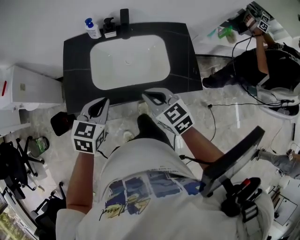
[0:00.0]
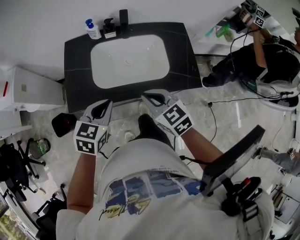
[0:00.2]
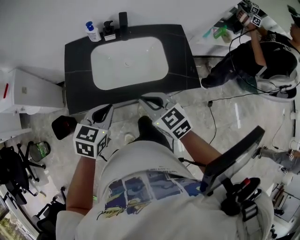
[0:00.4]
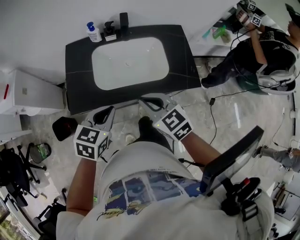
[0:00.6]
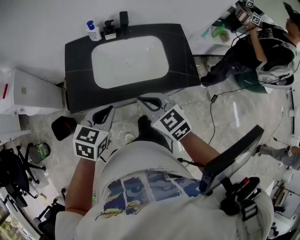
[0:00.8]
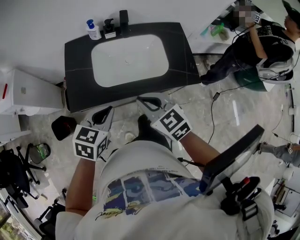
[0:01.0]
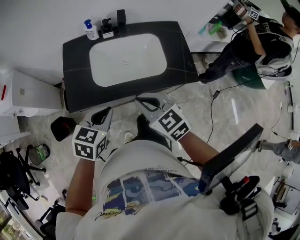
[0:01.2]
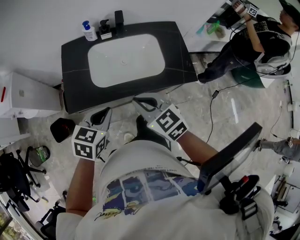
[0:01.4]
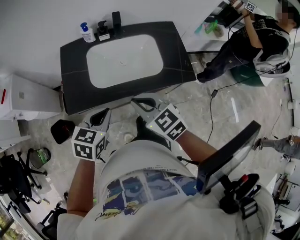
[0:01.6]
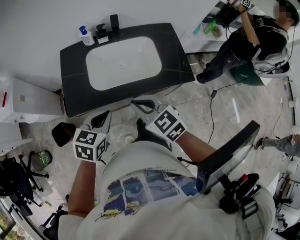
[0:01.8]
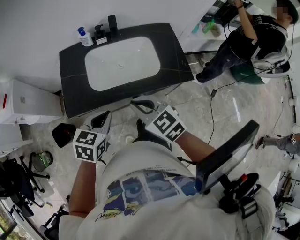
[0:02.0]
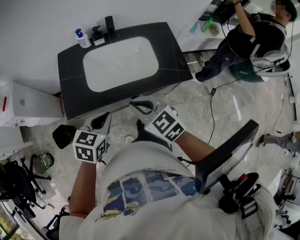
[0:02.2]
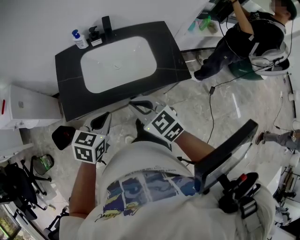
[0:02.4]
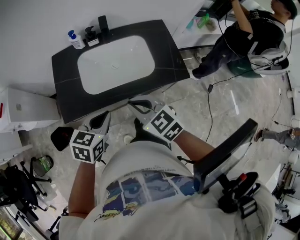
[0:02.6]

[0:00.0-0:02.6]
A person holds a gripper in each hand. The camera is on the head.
0:00.0 to 0:01.2: The left gripper heads backward, covering about 5 cm; the right gripper goes about 10 cm backward and to the left.
0:01.2 to 0:02.6: There are only small adjustments of the grippers.

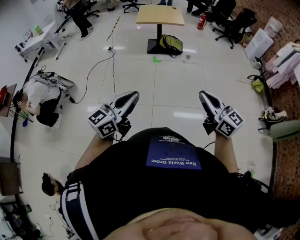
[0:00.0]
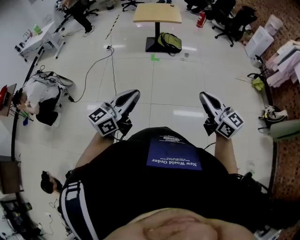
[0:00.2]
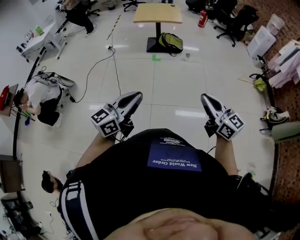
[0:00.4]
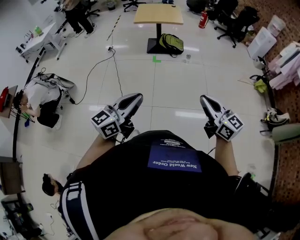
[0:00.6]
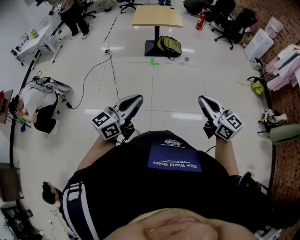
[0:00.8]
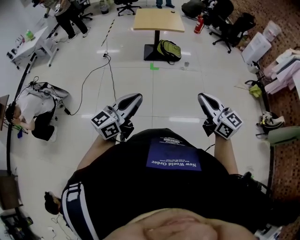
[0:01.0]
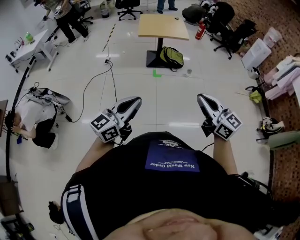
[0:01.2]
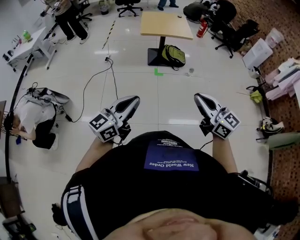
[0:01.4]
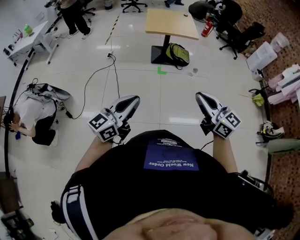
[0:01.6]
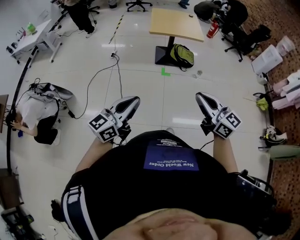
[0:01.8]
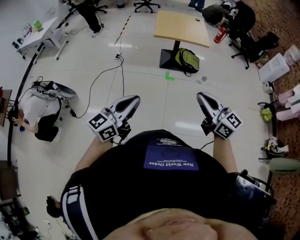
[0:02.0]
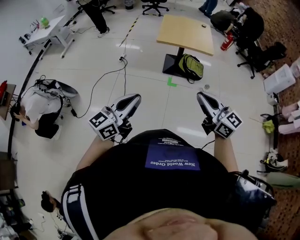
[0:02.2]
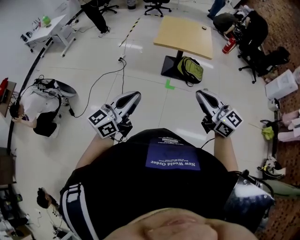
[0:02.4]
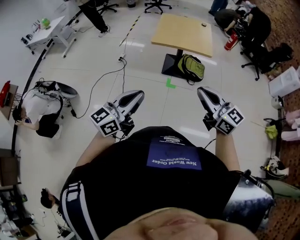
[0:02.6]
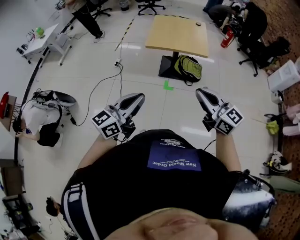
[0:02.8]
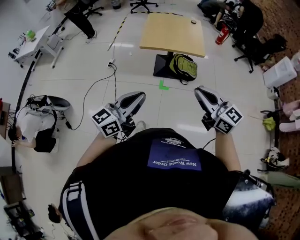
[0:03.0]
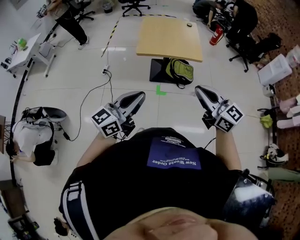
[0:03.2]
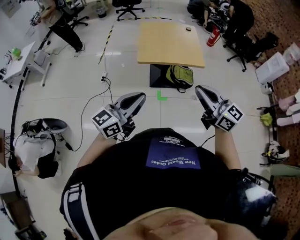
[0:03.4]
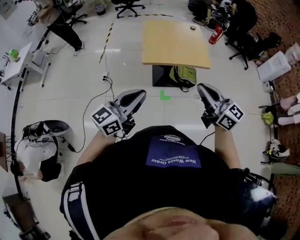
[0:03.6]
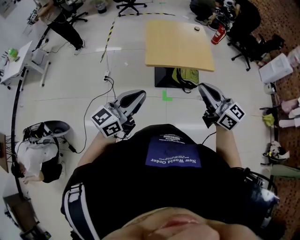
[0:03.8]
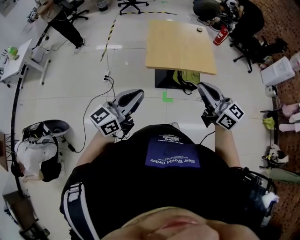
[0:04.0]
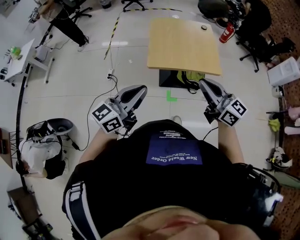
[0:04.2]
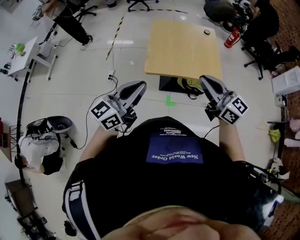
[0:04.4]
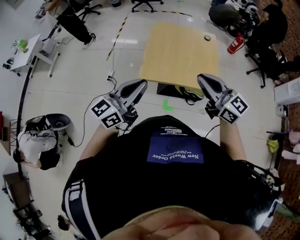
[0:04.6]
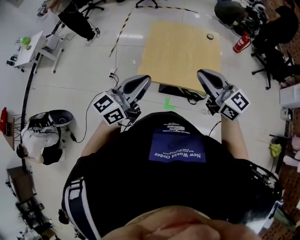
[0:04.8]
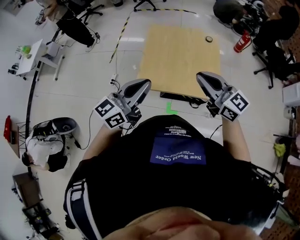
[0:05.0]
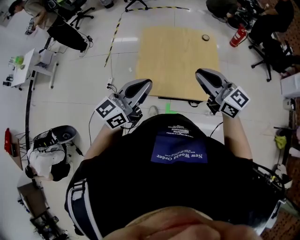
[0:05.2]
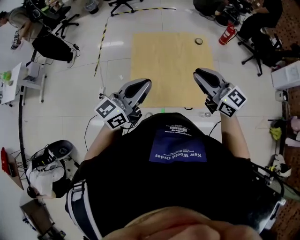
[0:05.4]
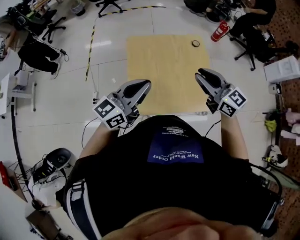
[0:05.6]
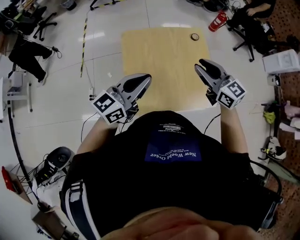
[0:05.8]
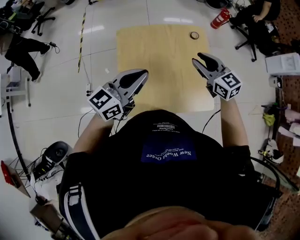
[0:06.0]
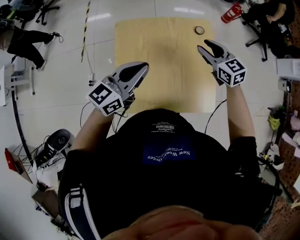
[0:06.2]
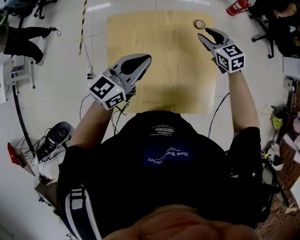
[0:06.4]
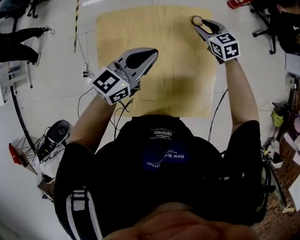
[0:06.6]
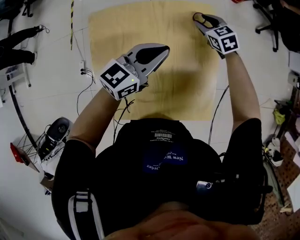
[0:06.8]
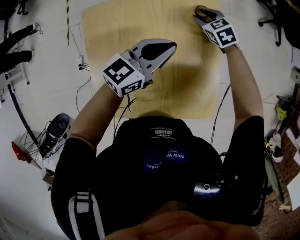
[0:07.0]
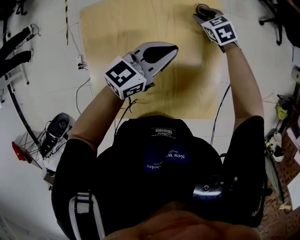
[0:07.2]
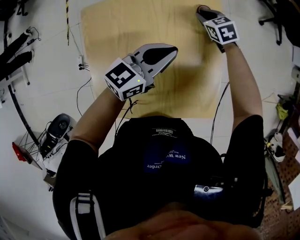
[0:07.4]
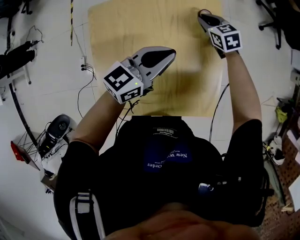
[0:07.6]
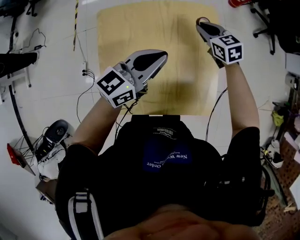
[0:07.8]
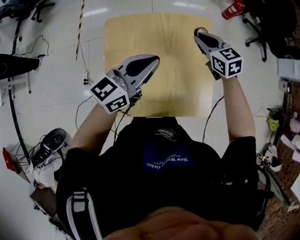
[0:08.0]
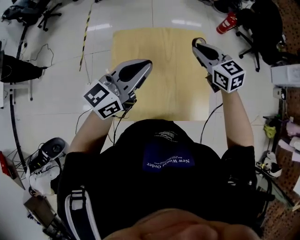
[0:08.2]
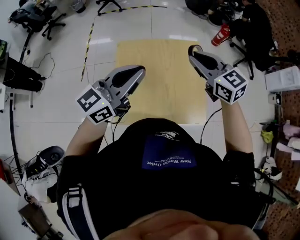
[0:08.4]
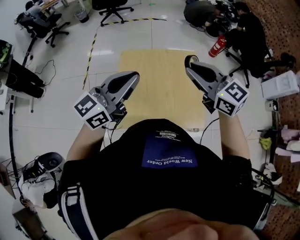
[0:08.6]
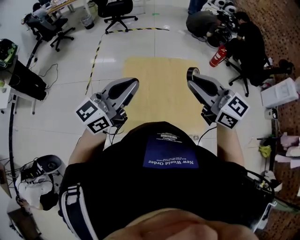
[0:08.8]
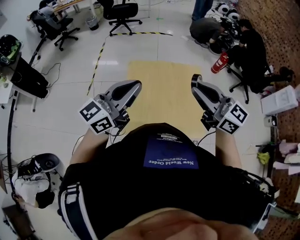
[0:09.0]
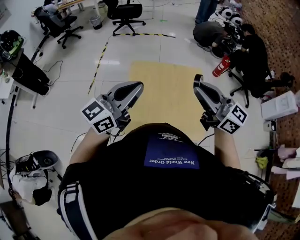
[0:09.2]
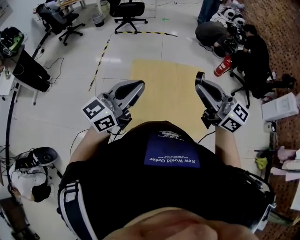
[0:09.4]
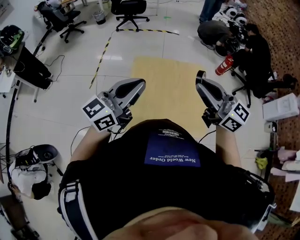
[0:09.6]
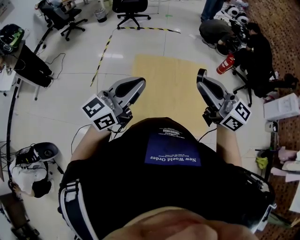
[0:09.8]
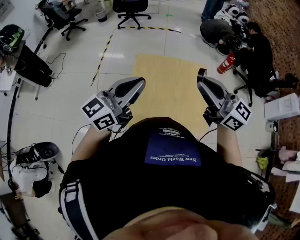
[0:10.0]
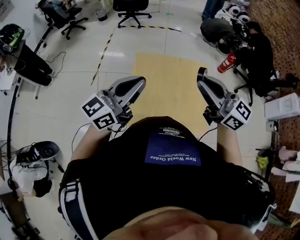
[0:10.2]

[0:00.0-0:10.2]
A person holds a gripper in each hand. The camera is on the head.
0:00.0 to 0:01.4: Both grippers move forward and to the left, some 30 cm.
0:01.4 to 0:03.0: The pair of grippers is taken forward and to the right, approximately 40 cm.
0:03.0 to 0:04.4: Both grippers move forward, some 35 cm.
0:04.4 to 0:05.8: The two grippers travel together, forward, approximately 40 cm. The right gripper rotates some 20 degrees, and opens up.
0:05.8 to 0:07.2: The right gripper shifts roughly 50 cm downward and forward, and tips its fingers downward by some 40 degrees. The left gripper travels forward, to the right and downward by some 40 cm.
0:07.2 to 0:08.8: The right gripper travels upward and backward by about 60 cm, angles its fingers upward, by roughly 50 degrees, and closes its fingers. Meanwhile the left gripper shifts about 50 cm upward, backward and to the left, and turns by roughly 30 degrees.
0:08.8 to 0:10.2: The grippers move only a little.

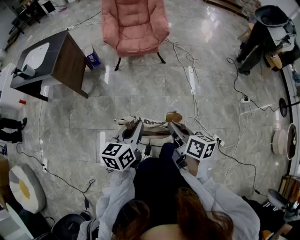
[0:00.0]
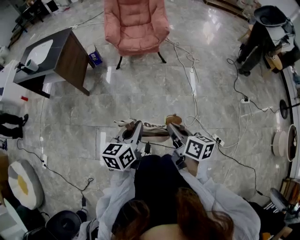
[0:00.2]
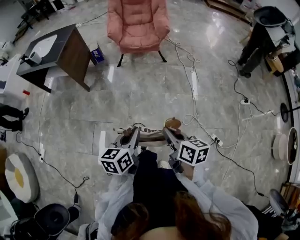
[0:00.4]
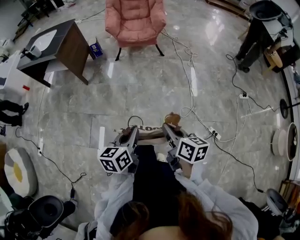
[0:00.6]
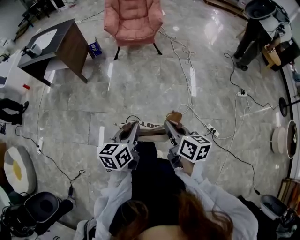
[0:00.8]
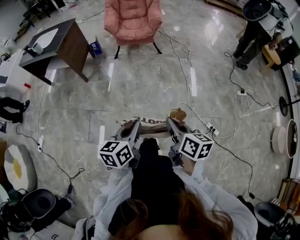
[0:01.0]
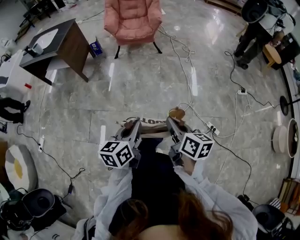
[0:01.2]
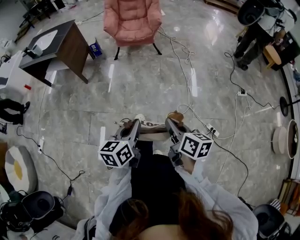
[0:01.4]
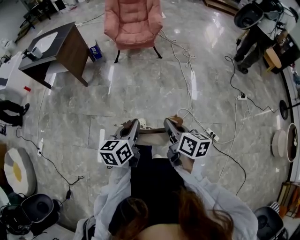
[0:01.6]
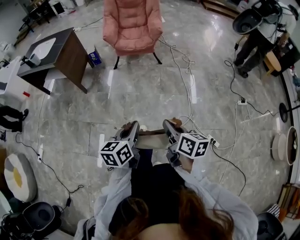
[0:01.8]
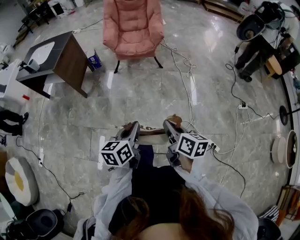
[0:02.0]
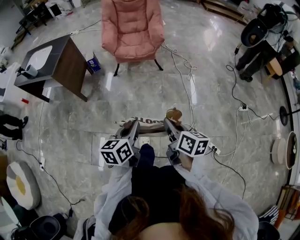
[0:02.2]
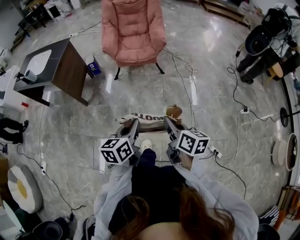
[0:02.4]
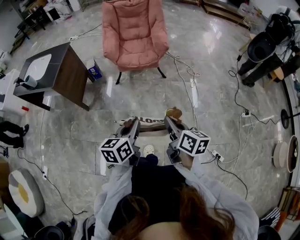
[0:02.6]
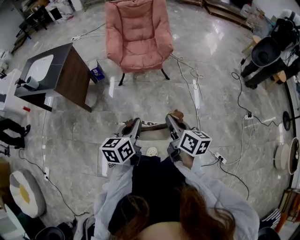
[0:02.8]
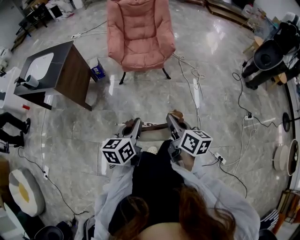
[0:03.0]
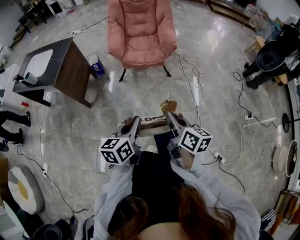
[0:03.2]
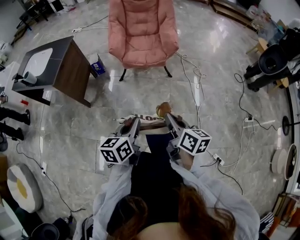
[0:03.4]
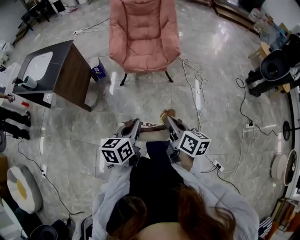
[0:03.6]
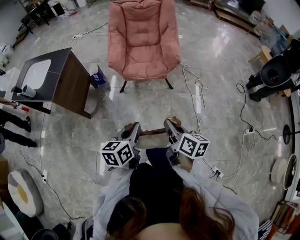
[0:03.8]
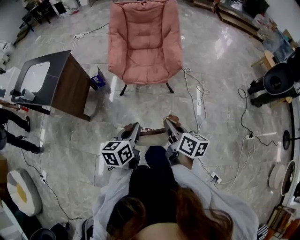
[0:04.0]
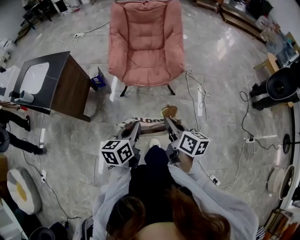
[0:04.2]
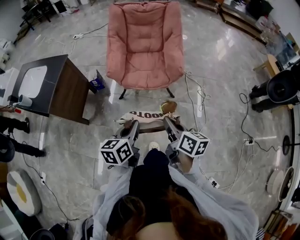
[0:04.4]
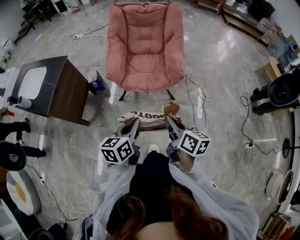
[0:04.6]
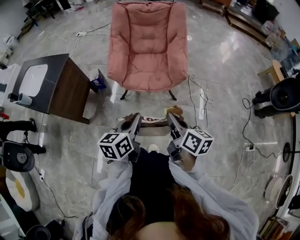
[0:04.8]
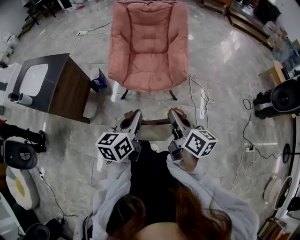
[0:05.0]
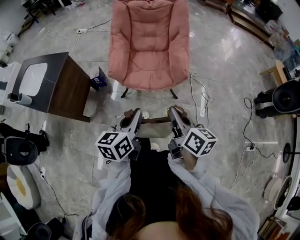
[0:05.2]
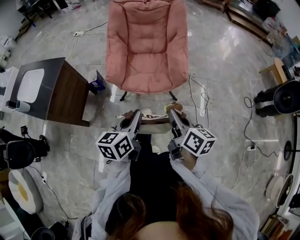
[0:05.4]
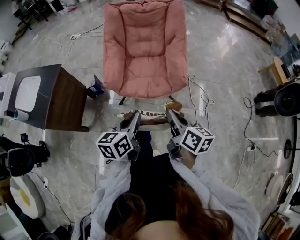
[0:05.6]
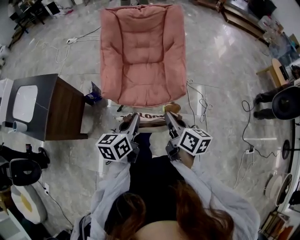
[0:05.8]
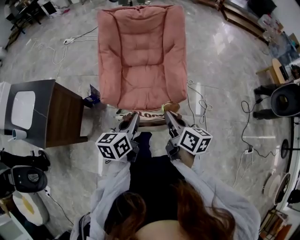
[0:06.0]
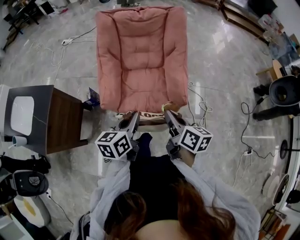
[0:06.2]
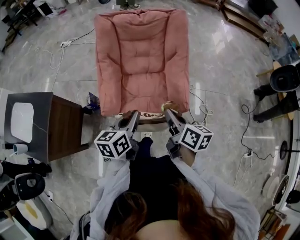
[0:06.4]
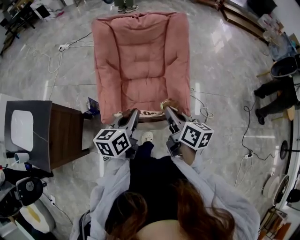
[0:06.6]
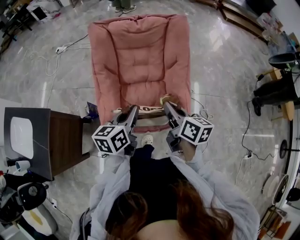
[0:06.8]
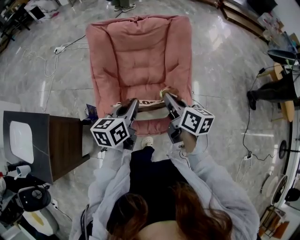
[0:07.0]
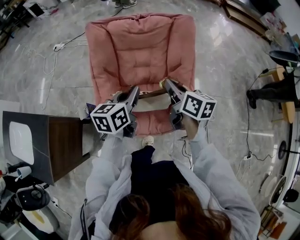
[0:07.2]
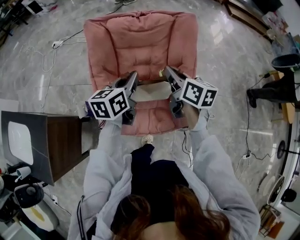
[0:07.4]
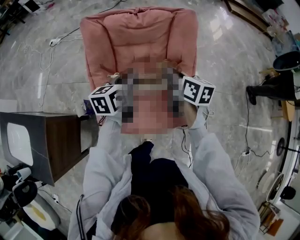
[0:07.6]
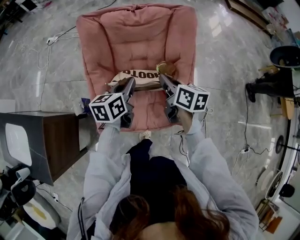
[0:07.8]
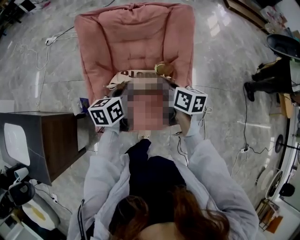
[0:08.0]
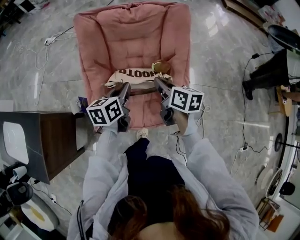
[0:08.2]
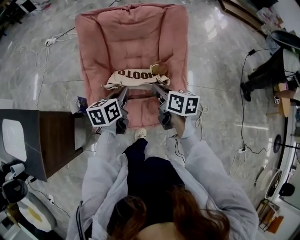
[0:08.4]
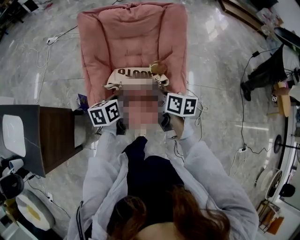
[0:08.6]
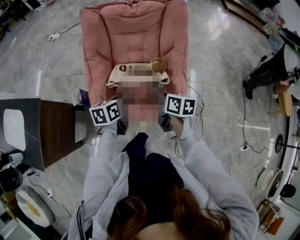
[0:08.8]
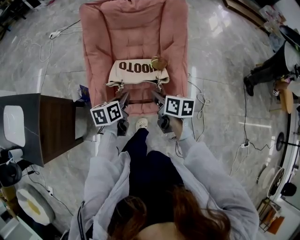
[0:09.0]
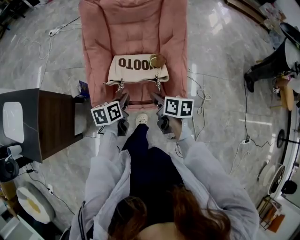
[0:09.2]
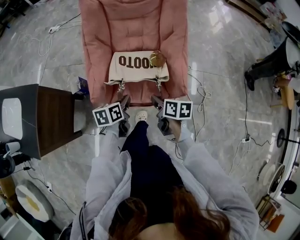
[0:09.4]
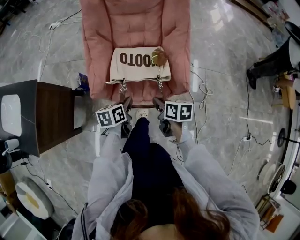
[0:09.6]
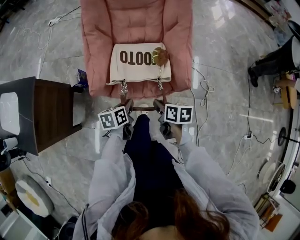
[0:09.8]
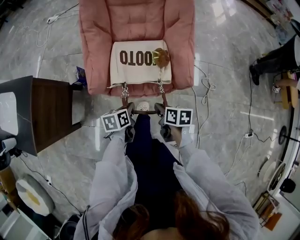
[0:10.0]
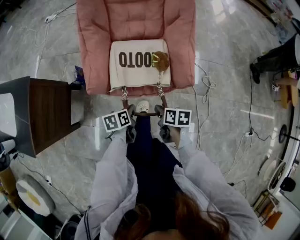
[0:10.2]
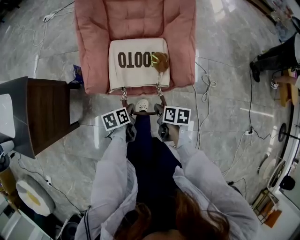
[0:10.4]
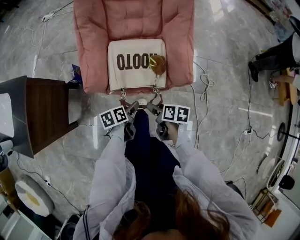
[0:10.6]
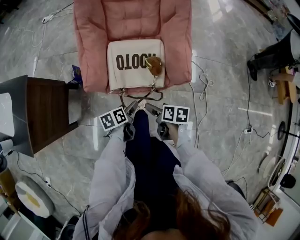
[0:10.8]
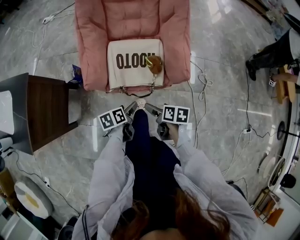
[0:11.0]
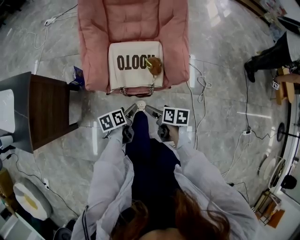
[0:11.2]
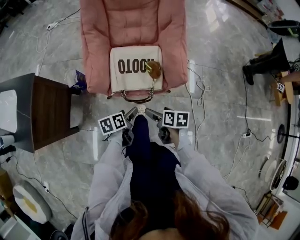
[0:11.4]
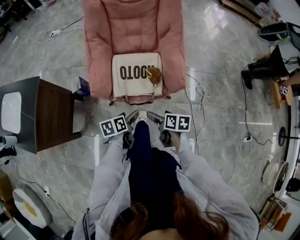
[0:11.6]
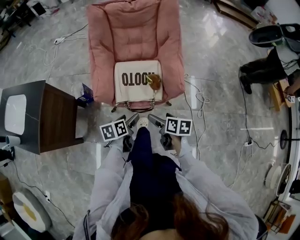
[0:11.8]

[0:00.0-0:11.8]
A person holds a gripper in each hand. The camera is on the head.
0:00.0 to 0:01.4: The right gripper heads backward and to the right, covering roughly 20 cm; the left gripper heads backward, covering approximately 20 cm.
0:01.4 to 0:03.0: Both grippers move forward, approximately 35 cm.
0:03.0 to 0:04.4: Both grippers move forward, roughly 25 cm.
0:04.4 to 0:06.0: The two grippers go some 25 cm forward.
0:06.0 to 0:07.4: The two grippers go some 40 cm forward.
0:07.4 to 0:08.8: Both grippers travel together backward and downward, about 20 cm.
0:08.8 to 0:10.4: Both grippers travel together downward and backward, approximately 30 cm. The left gripper changes its angle by about 20 degrees. Meanwhile the right gripper swivels roughly 20 degrees.
0:10.4 to 0:11.8: The grippers both shift upward by some 10 cm. The left gripper opens up; the right gripper opens up.
